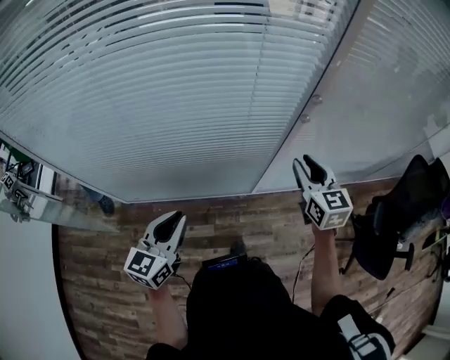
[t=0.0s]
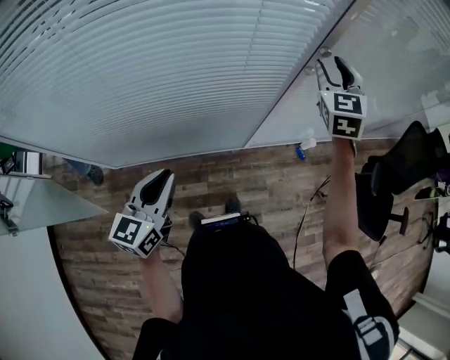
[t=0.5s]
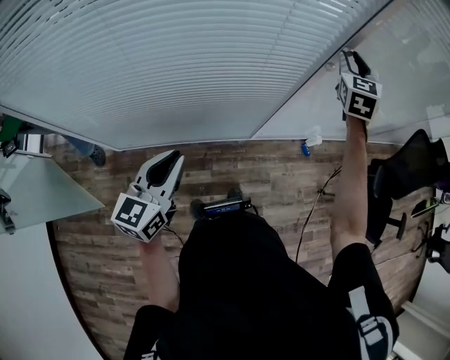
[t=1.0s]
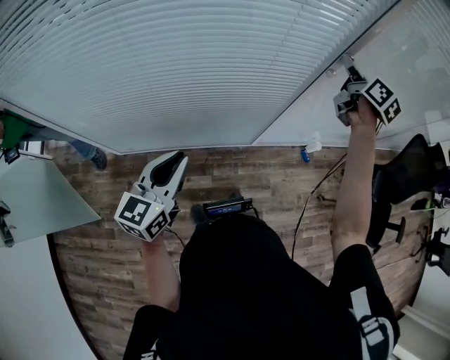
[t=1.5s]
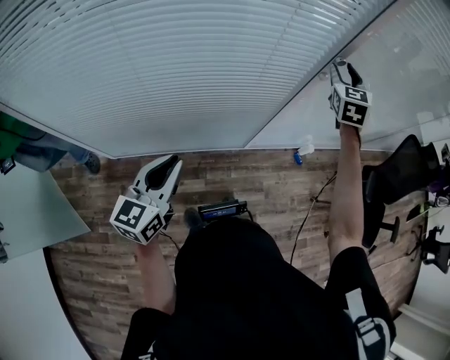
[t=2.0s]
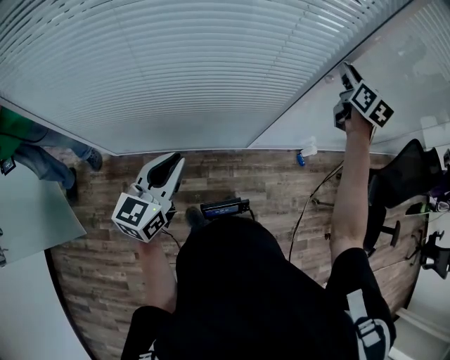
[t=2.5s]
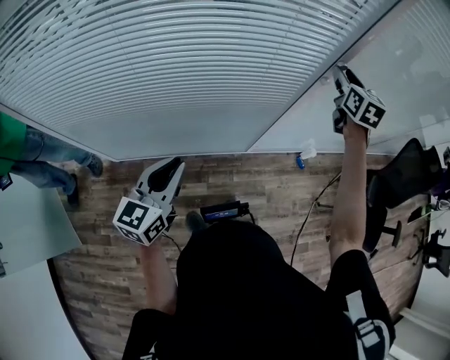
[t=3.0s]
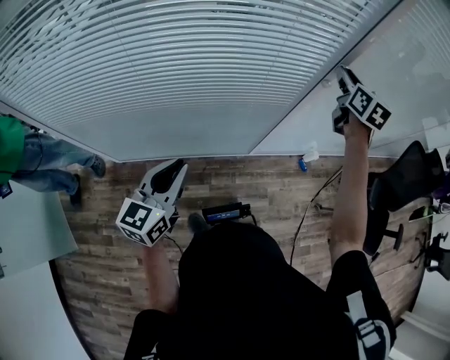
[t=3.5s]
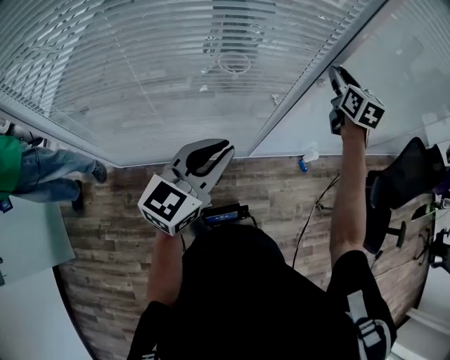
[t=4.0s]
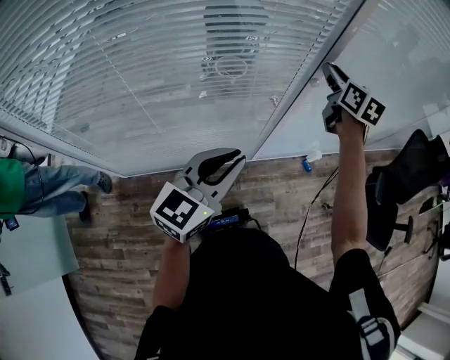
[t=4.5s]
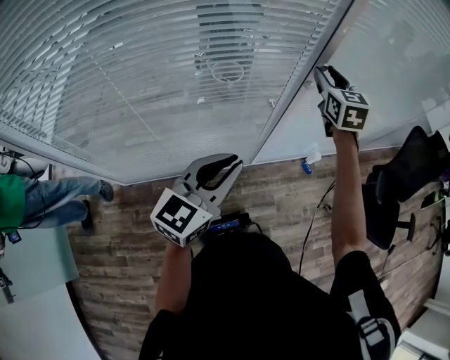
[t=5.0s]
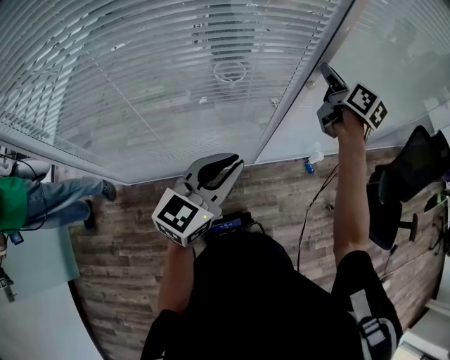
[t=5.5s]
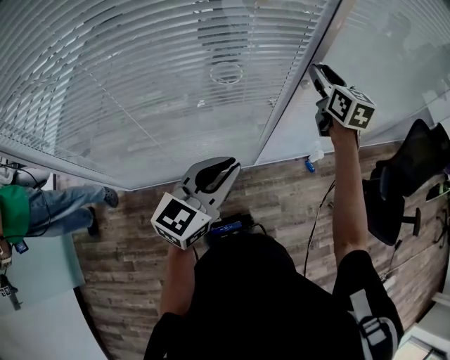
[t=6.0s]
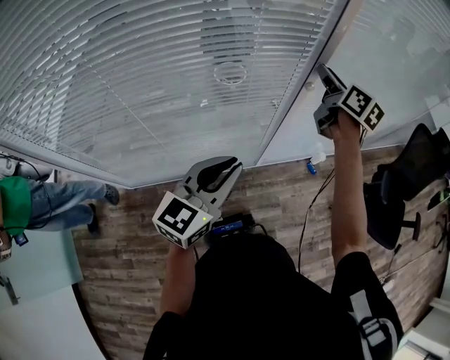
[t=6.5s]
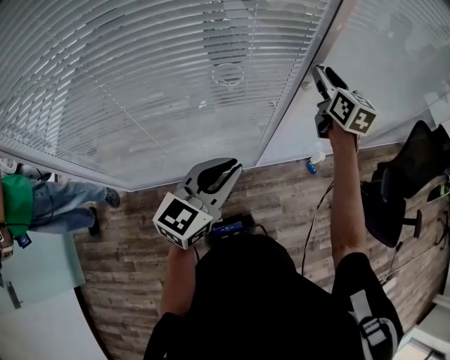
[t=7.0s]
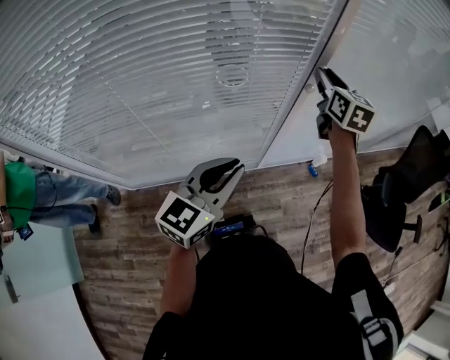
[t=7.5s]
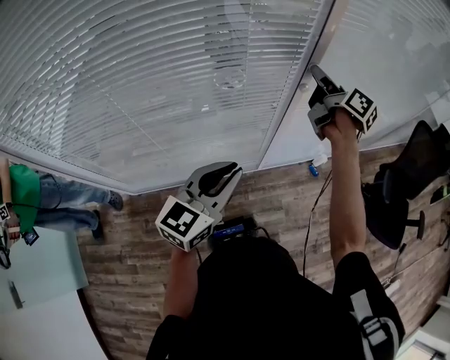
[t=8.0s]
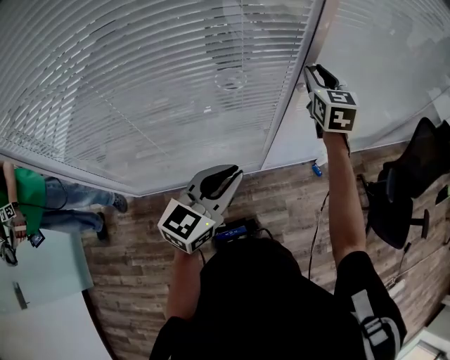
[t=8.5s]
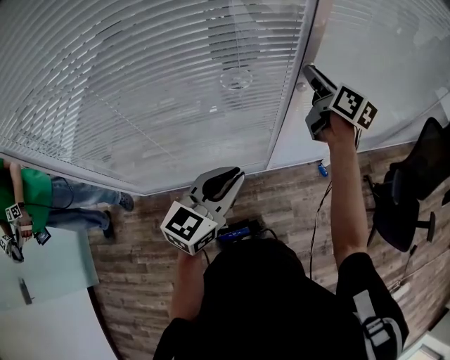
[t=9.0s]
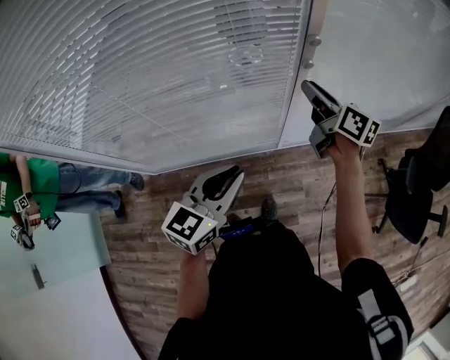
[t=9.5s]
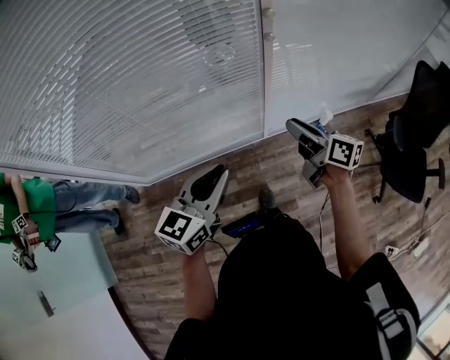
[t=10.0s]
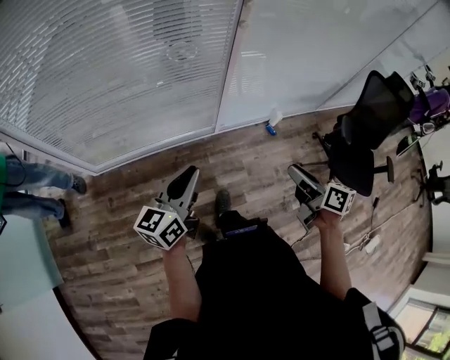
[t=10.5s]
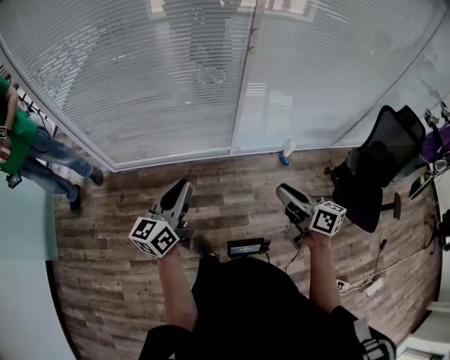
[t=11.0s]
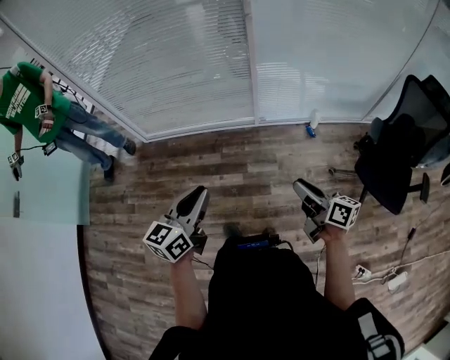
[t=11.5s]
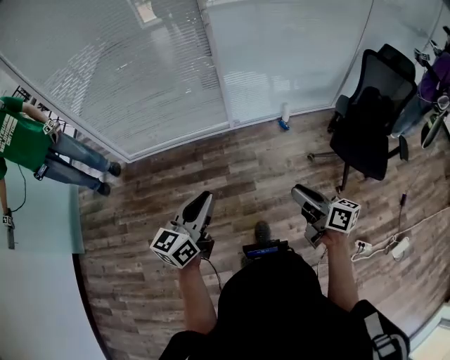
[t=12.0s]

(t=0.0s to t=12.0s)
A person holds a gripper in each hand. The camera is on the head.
t=0.0s - t=2.0s: The right gripper goes about 20 cm forward and upward, and changes its angle by roughly 30 degrees.
t=2.0s - t=4.0s: The left gripper travels to the right, upward and forward by about 15 cm. Meanwhile the right gripper changes its angle by approximately 30 degrees.
t=6.0s - t=8.0s: The right gripper rolls clockwise, seen from behind, by some 50 degrees.
t=8.0s - t=10.0s: The right gripper shifts about 30 cm backward and downward, while the left gripper travels backward and downward by some 10 cm.
t=10.0s - t=12.0s: The two grippers travel together, backward, roughly 50 cm.

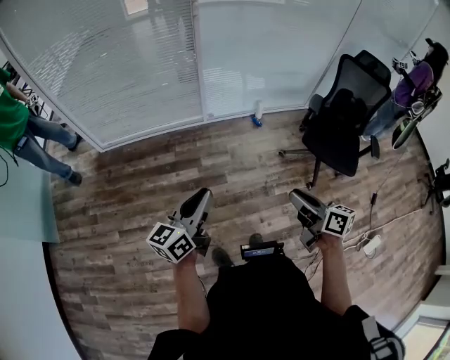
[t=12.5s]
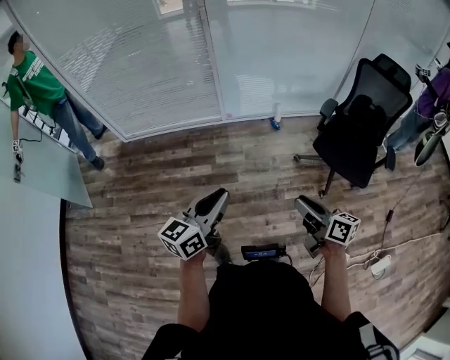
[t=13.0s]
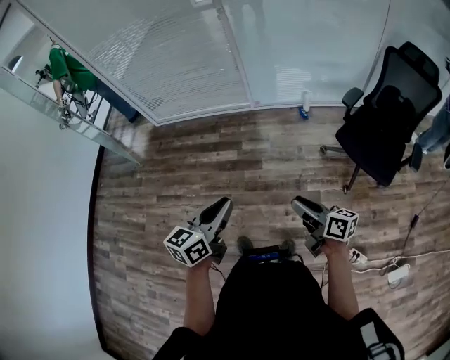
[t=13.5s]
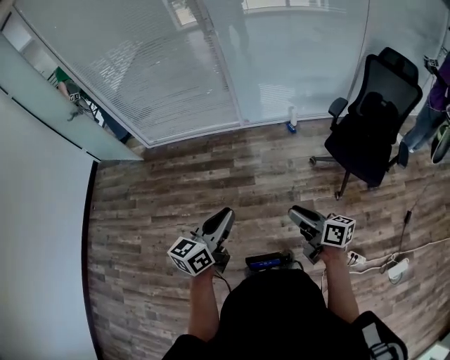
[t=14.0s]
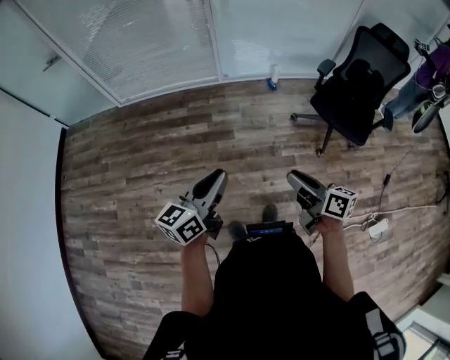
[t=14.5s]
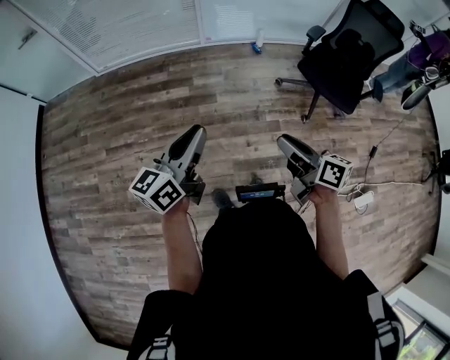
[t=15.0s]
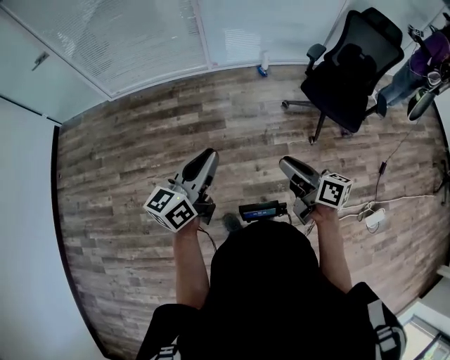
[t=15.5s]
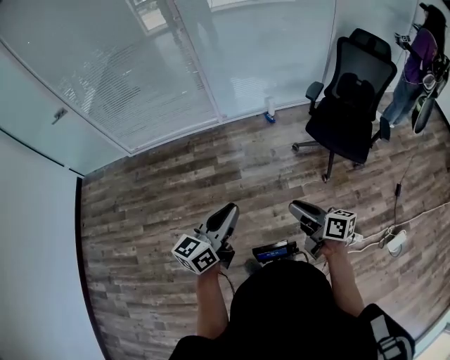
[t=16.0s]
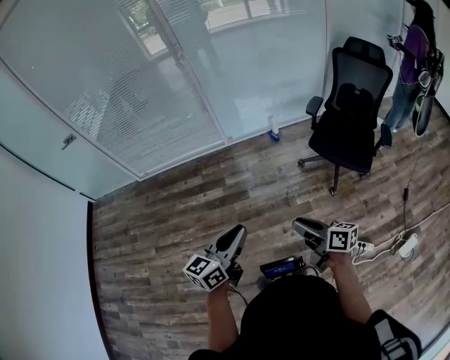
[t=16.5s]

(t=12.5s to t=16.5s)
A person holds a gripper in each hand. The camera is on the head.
t=12.5s - t=14.5s: The right gripper heads backward, covering approximately 15 cm. The left gripper moves backward and to the right, about 20 cm.
t=14.5s - t=16.5s: The left gripper is displaced to the right by approximately 5 cm.

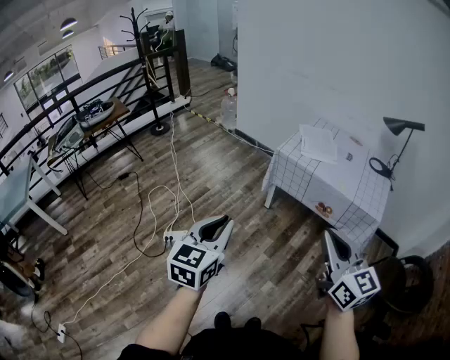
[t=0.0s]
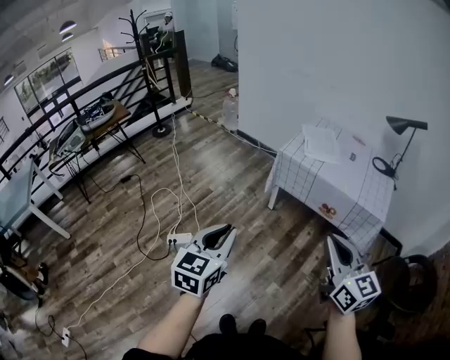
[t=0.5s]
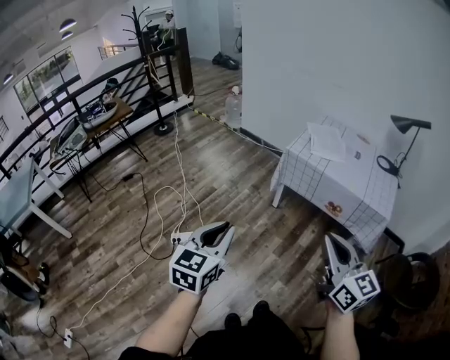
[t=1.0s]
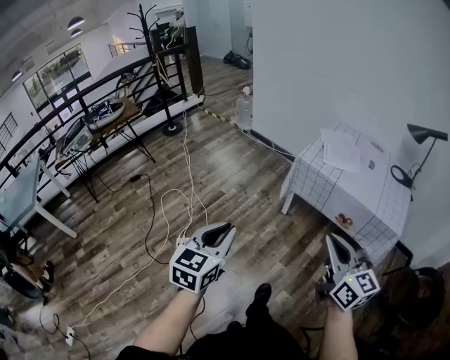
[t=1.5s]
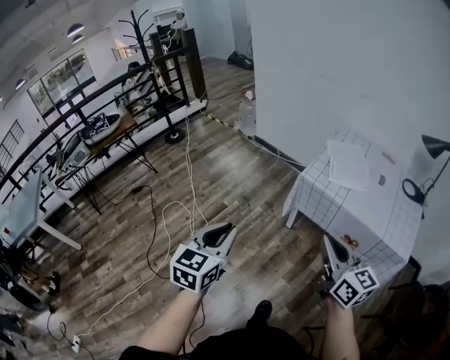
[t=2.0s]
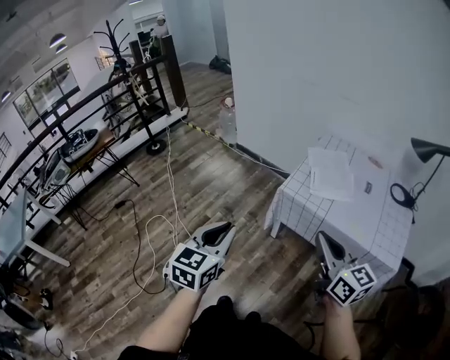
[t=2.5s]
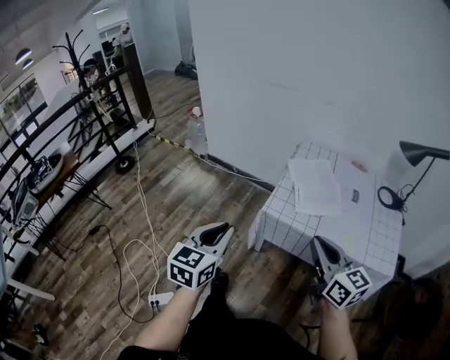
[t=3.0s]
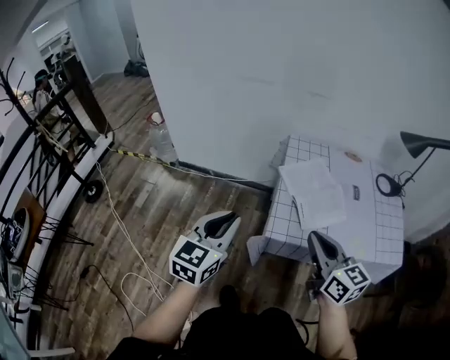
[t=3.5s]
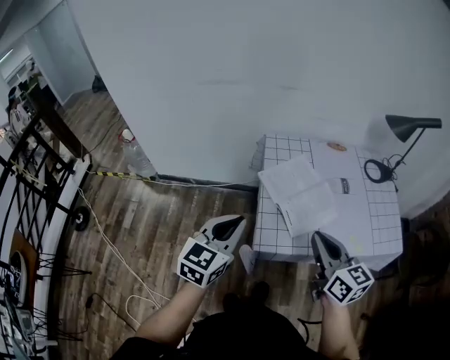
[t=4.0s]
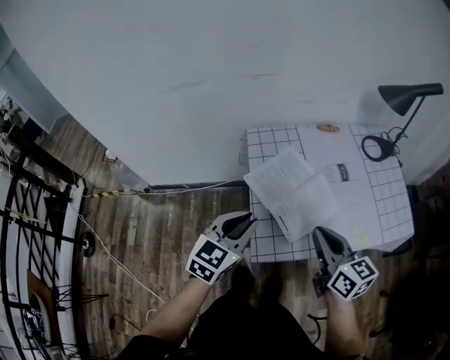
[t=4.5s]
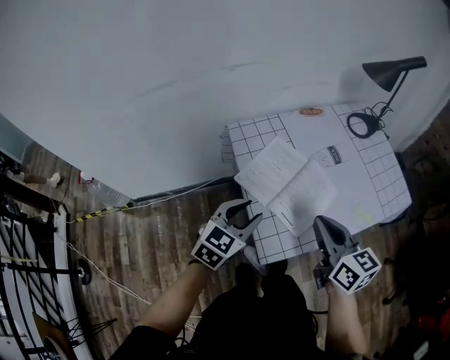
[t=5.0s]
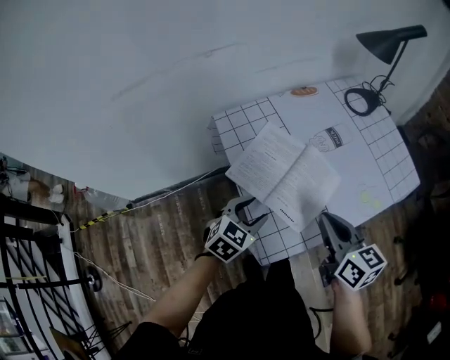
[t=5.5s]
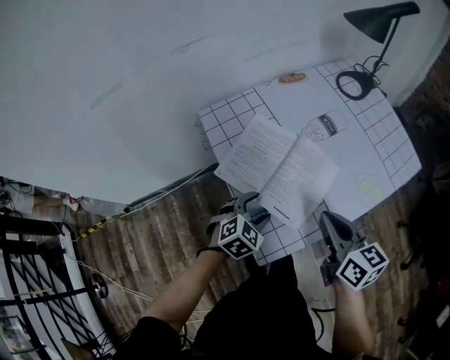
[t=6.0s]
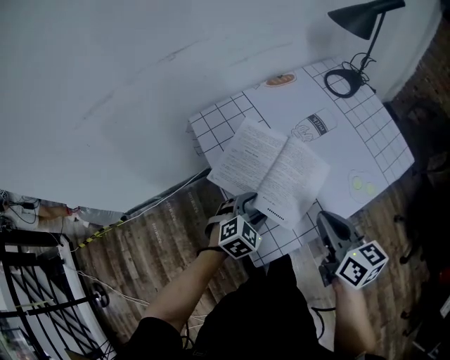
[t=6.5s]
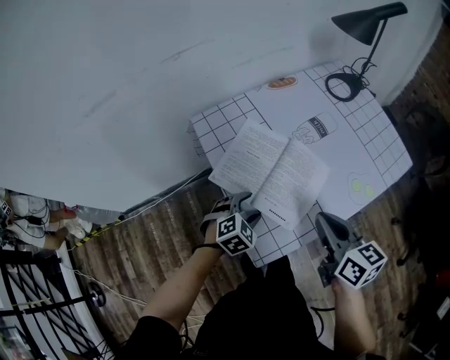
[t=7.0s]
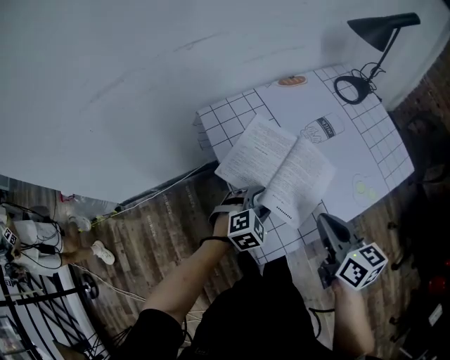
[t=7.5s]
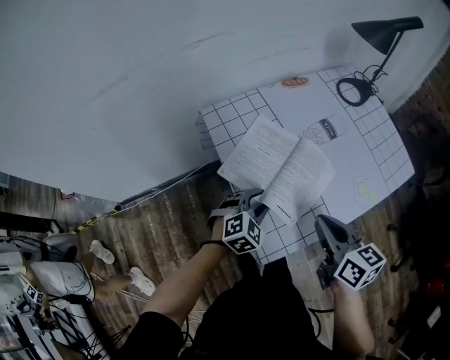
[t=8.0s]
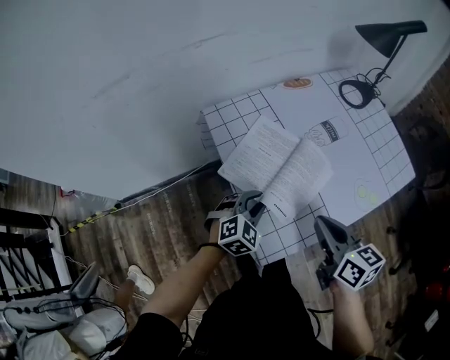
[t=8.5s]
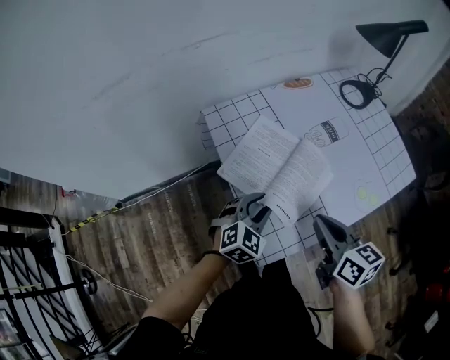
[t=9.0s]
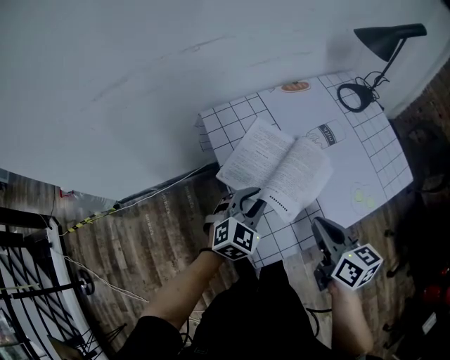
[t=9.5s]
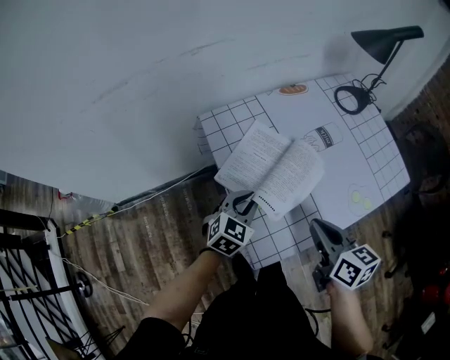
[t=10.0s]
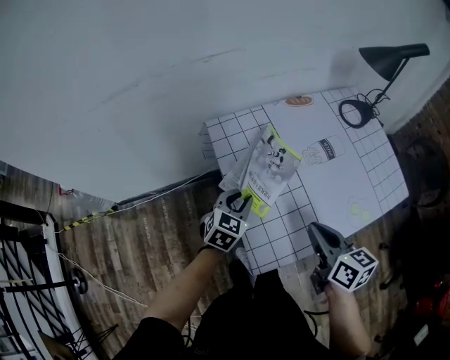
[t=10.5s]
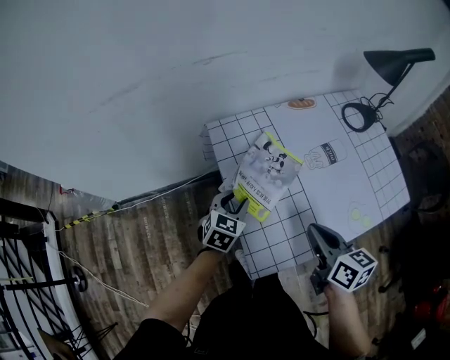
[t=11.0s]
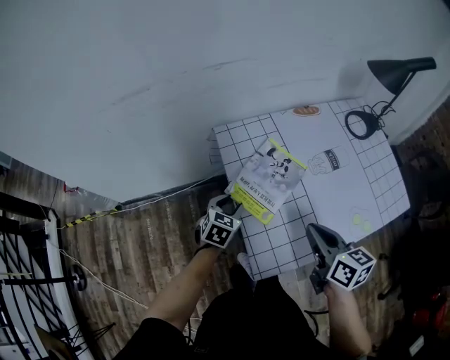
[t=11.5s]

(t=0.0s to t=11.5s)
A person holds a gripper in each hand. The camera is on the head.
t=0.0s - t=2.0s: Both grippers move forward, roughly 25 cm.
t=2.0s - t=4.0s: The two grippers travel together, roughly 50 cm. The right gripper rotates approximately 40 degrees. Meanwhile the left gripper swivels roughly 40 degrees.
t=4.0s - t=6.0s: The right gripper moves downward, some 15 cm, and rotates roughly 30 degrees; the left gripper heads downward, covering some 25 cm, tips its fingers downward by some 30 degrees, and opens up.
t=6.0s - t=7.5s: The grippers make only small movements.
t=7.5s - t=9.5s: The left gripper moves upward, approximately 10 cm, swivels roughly 20 degrees, and closes.
t=9.5s - t=11.5s: The left gripper is displaced to the left and downward by some 10 cm, and rotates approximately 30 degrees.
